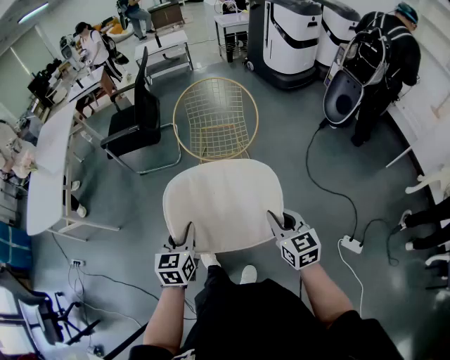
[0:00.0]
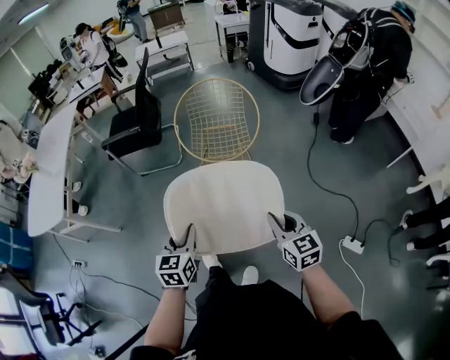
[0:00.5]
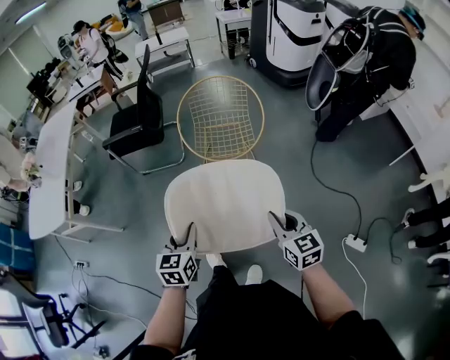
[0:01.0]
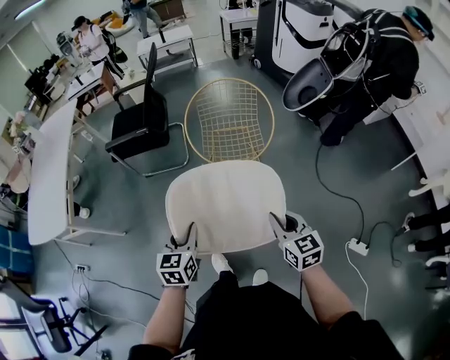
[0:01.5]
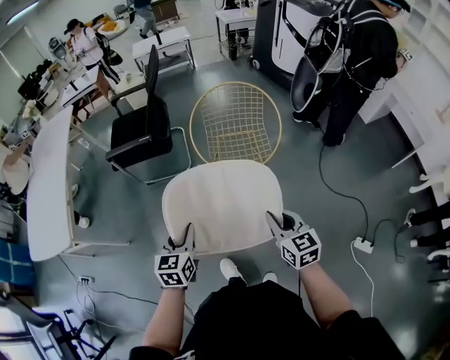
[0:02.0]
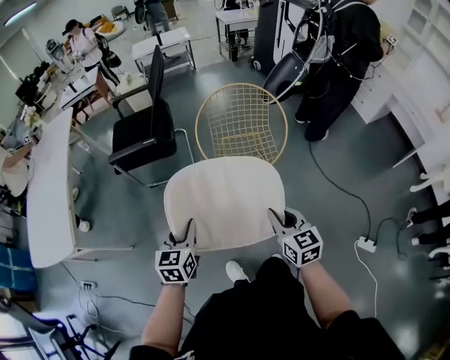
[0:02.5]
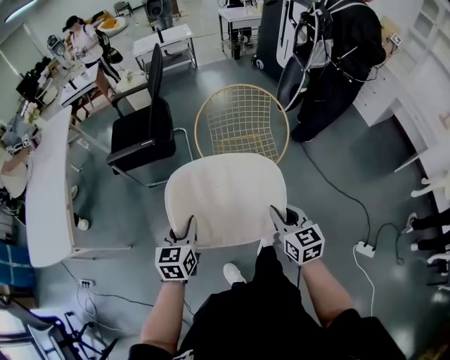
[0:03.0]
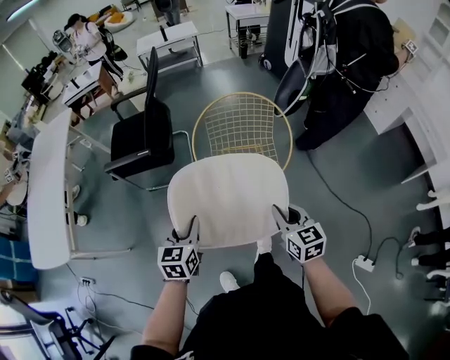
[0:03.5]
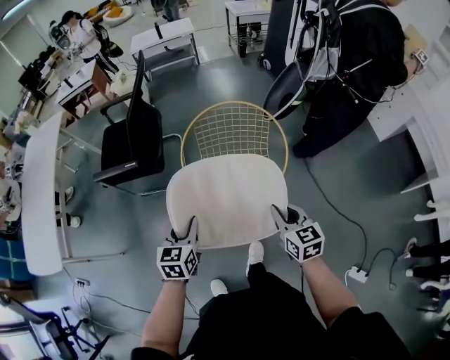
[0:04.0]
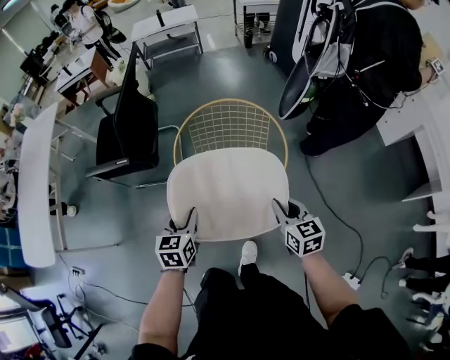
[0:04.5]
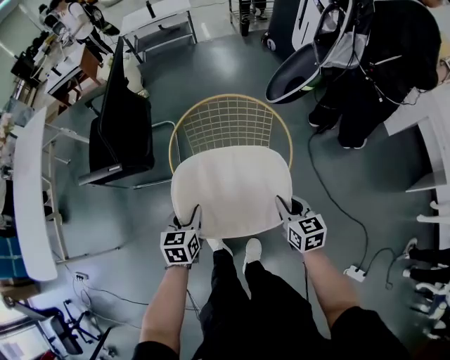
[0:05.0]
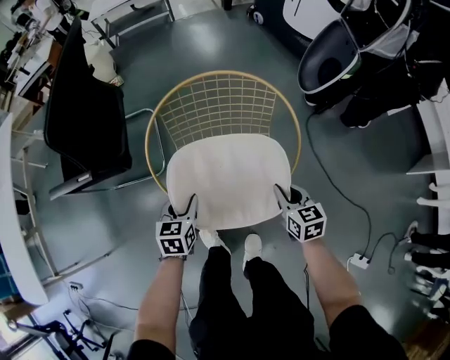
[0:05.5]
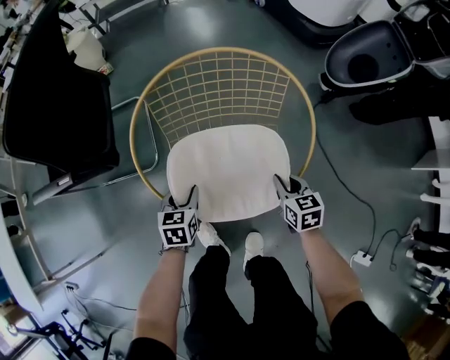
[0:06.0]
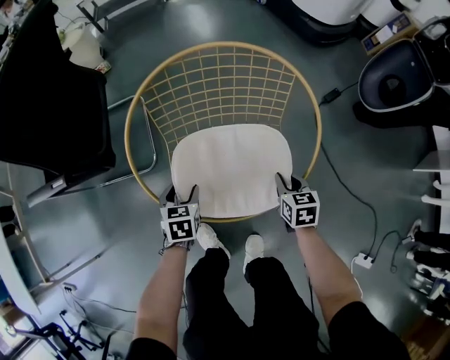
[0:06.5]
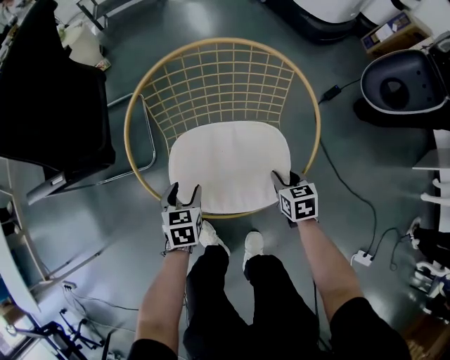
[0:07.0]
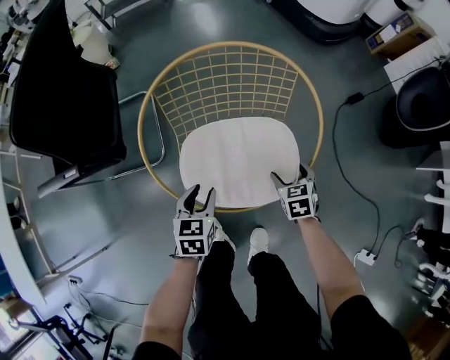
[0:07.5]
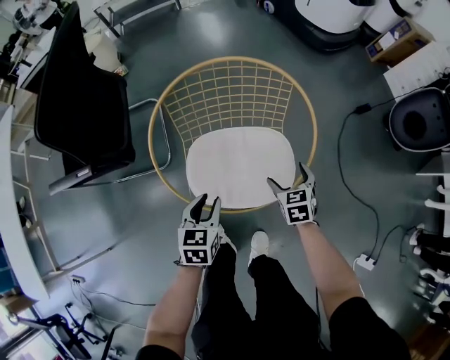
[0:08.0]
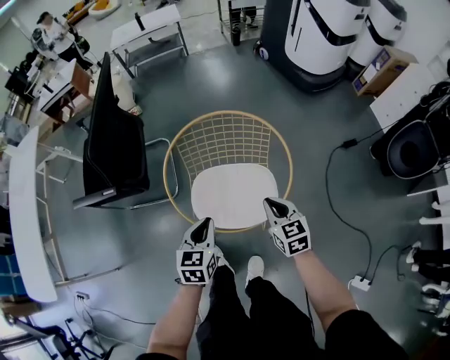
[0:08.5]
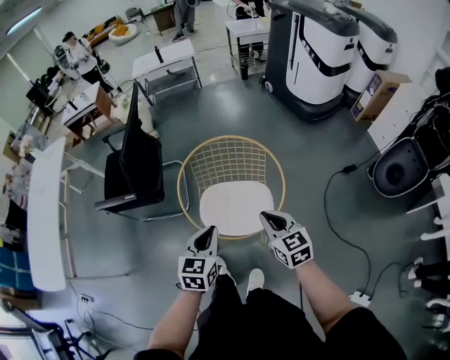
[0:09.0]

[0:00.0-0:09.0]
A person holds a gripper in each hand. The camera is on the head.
0:00.0 to 0:02.0: The grippers both shift forward and to the left by approximately 20 cm.
0:02.0 to 0:04.5: The grippers both shift forward and to the right by roughly 35 cm.
0:04.5 to 0:07.0: The right gripper travels downward by approximately 35 cm, and turns by about 20 degrees. The left gripper heads downward and forward, covering roughly 40 cm, and opens its fingers.
0:07.0 to 0:09.0: Both grippers travel together upward, some 40 cm. The right gripper swivels about 30 degrees, and opens and closes again. The left gripper turns by about 20 degrees, and closes its fingers.

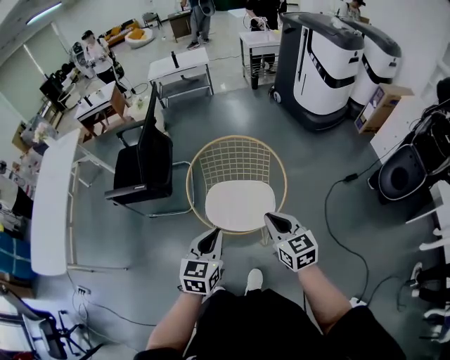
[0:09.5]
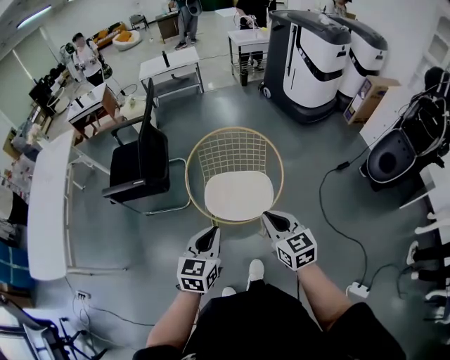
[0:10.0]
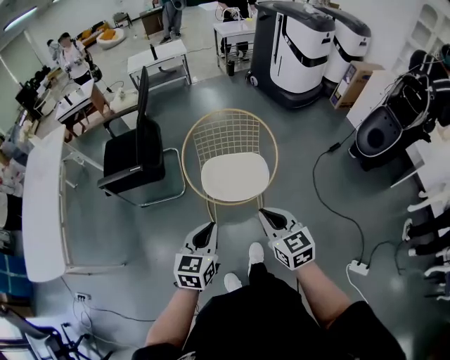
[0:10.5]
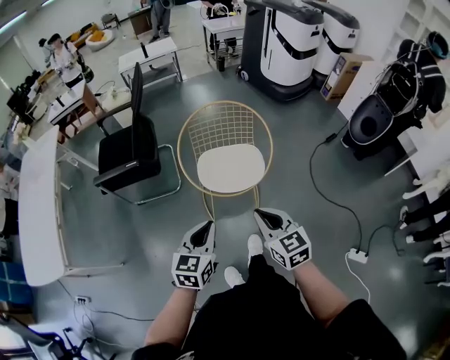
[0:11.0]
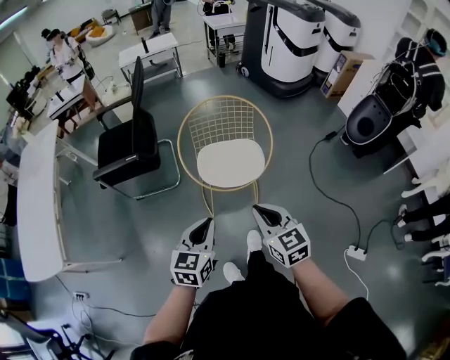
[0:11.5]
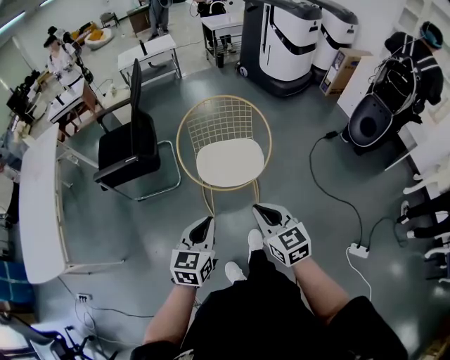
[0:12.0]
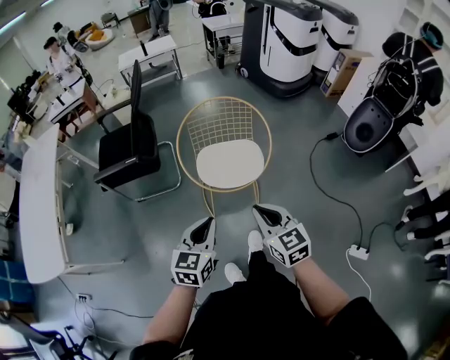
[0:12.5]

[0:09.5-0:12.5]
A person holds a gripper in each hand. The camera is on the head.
0:09.5 to 0:11.0: The two grippers go roughly 20 cm backward and to the left.
0:11.0 to 0:12.5: The grippers make only small movements.

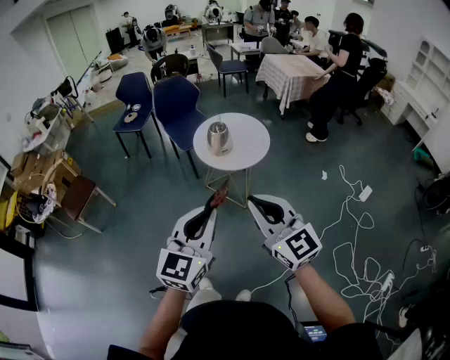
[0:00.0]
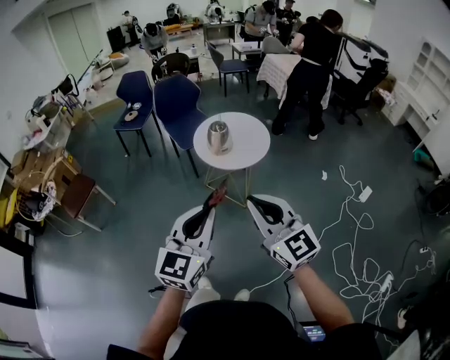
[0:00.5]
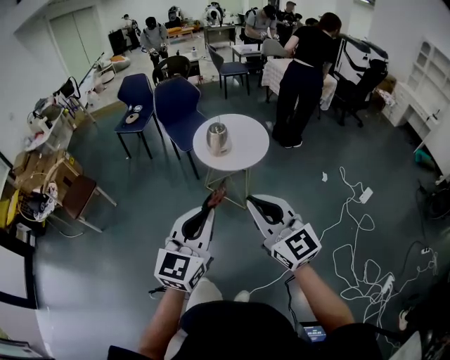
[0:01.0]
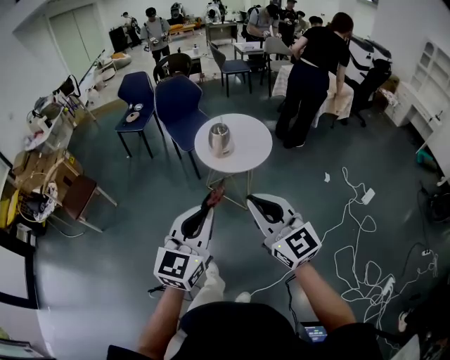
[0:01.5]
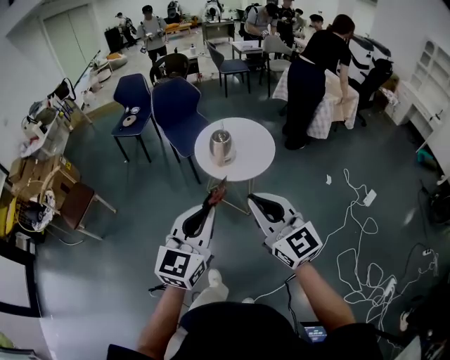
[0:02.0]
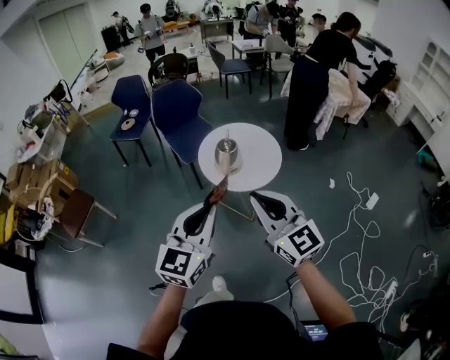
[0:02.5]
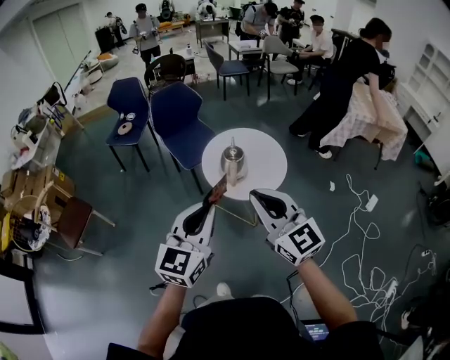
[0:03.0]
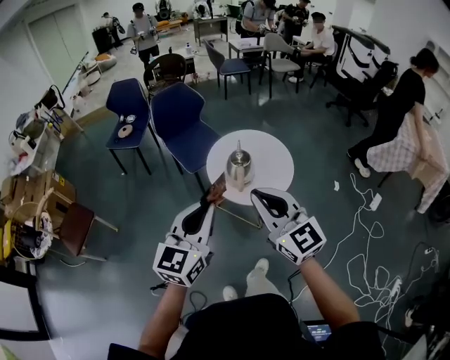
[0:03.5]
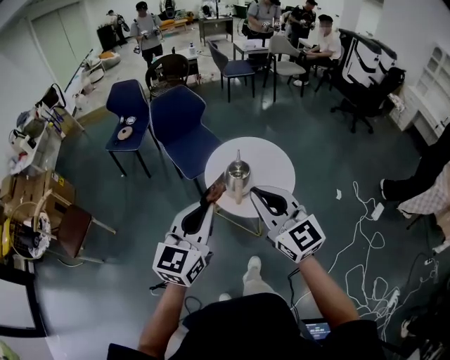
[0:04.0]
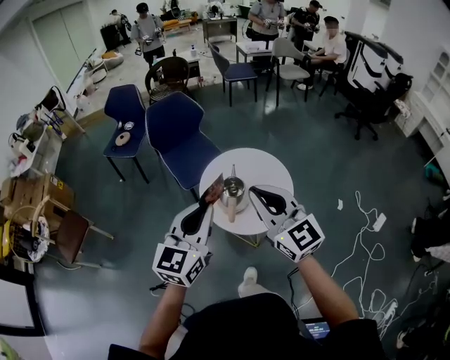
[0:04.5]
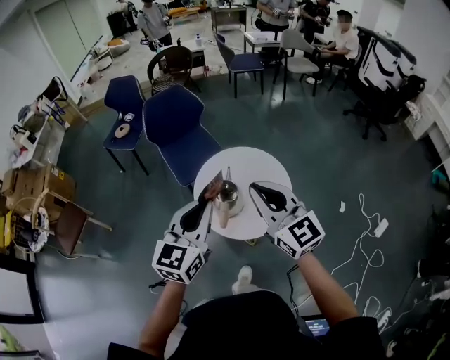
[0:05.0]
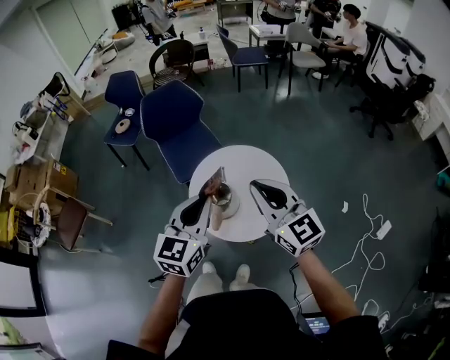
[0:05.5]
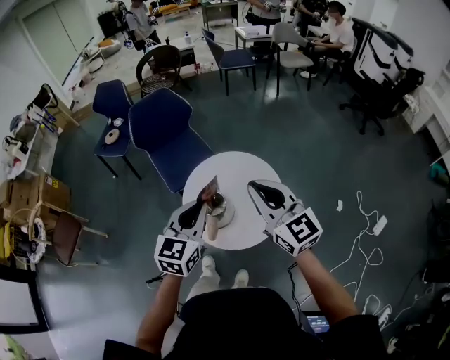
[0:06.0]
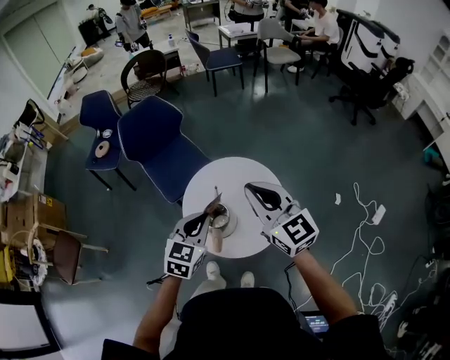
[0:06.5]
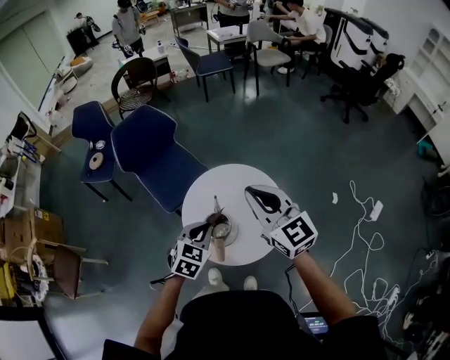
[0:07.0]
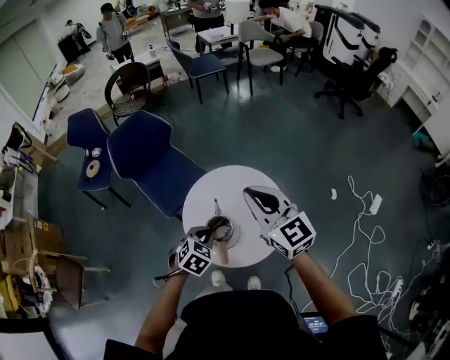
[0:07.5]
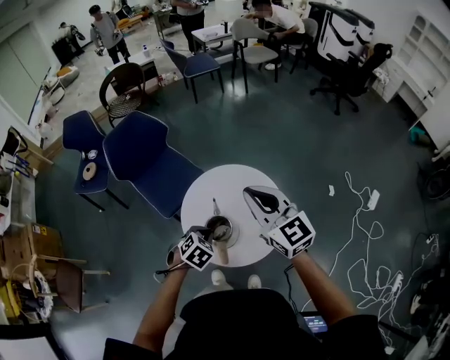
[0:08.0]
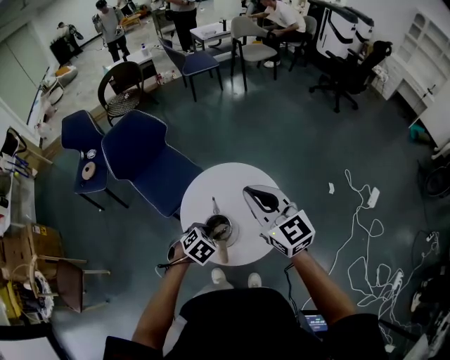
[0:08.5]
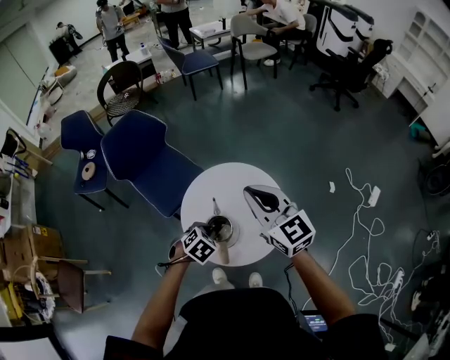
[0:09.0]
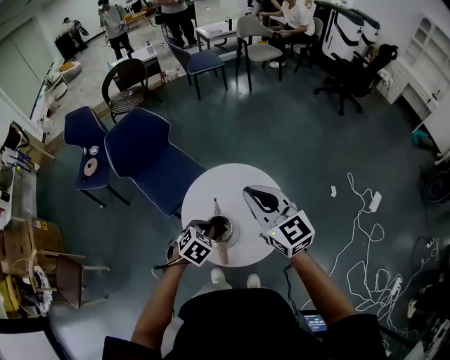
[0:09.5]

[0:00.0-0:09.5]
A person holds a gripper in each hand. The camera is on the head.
0:00.0 to 0:02.0: Both grippers move forward, about 15 cm.
0:02.0 to 0:04.0: The grippers both shift forward by roughly 35 cm.
0:04.0 to 0:05.5: Both grippers travel together forward and to the right, roughly 30 cm.
0:05.5 to 0:07.5: The left gripper travels downward and forward by some 25 cm, and tilts its fingers some 40 degrees downward. The right gripper travels forward by some 15 cm.
0:07.5 to 0:09.5: The grippers make only small movements.

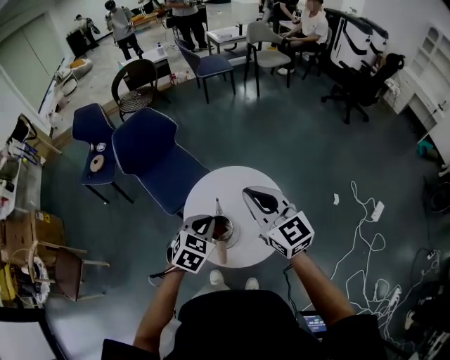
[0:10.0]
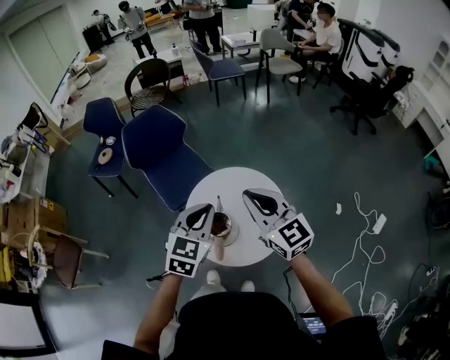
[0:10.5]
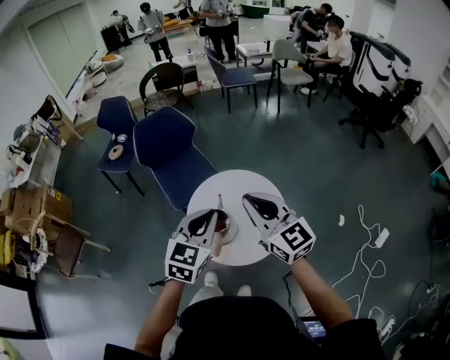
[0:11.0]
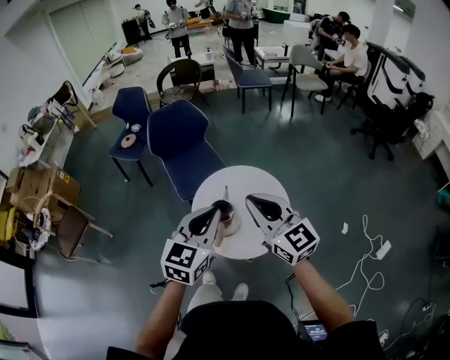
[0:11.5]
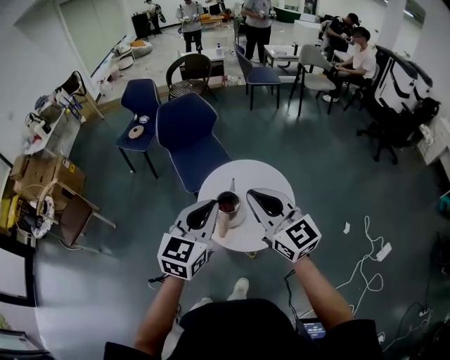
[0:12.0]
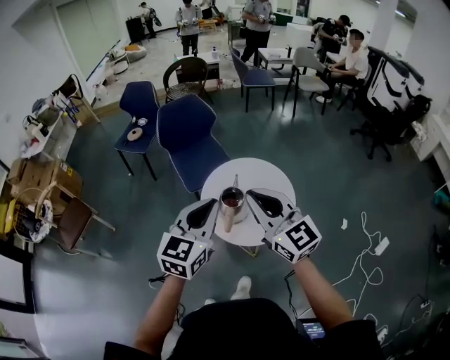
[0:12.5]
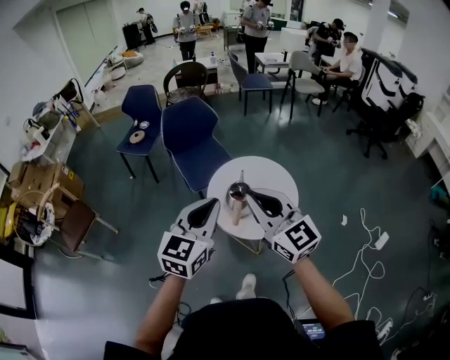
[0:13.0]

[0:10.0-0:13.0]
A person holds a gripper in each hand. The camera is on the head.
0:10.0 to 0:11.5: The left gripper travels backward and upward by approximately 20 cm, and swivels about 40 degrees, while the right gripper is displaced backward by about 15 cm.
0:11.5 to 0:13.0: The right gripper goes some 20 cm to the left, backward and upward, while the left gripper shifts roughly 20 cm to the left and backward.

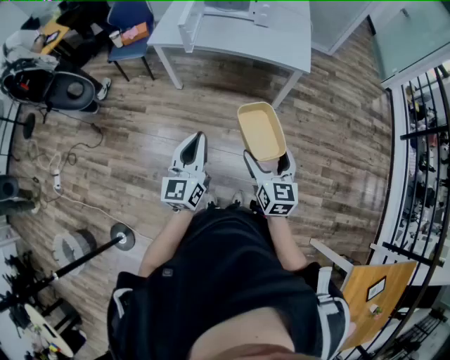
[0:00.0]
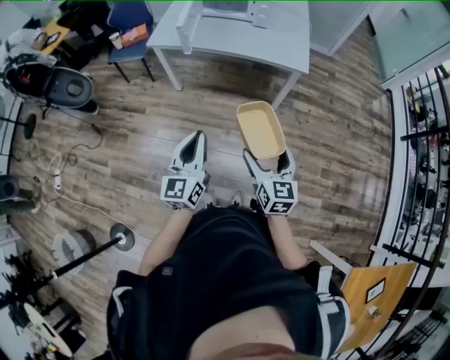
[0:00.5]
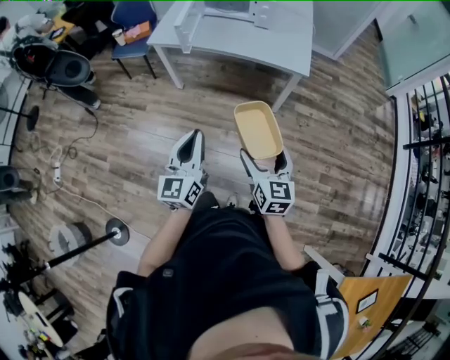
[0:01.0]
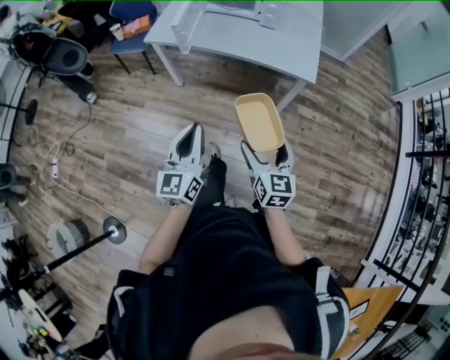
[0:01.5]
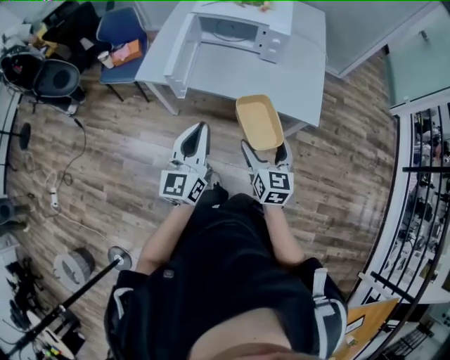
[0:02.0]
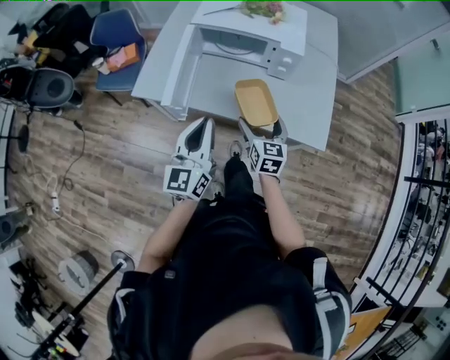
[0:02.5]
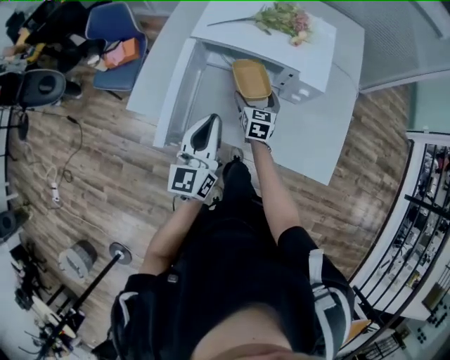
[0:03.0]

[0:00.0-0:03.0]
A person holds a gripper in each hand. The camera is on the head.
0:00.0 to 0:01.5: The left gripper moves forward and to the right, approximately 10 cm; the right gripper moves forward, approximately 15 cm.
0:01.5 to 0:03.0: Both grippers are carried forward, approximately 70 cm.
